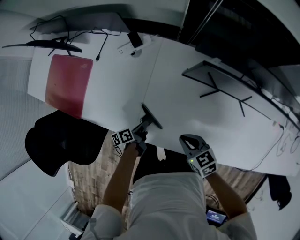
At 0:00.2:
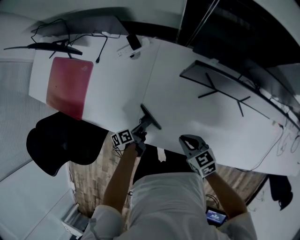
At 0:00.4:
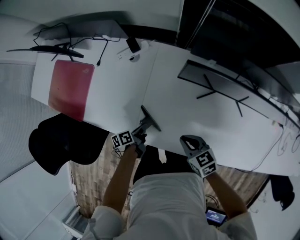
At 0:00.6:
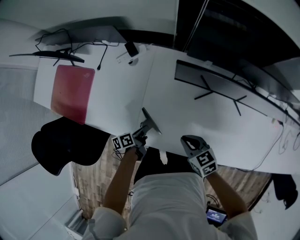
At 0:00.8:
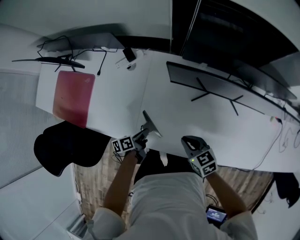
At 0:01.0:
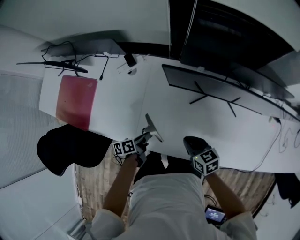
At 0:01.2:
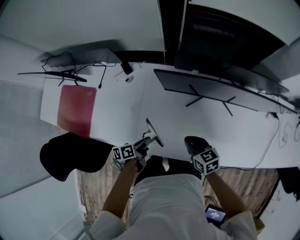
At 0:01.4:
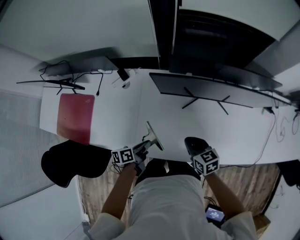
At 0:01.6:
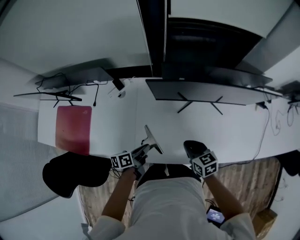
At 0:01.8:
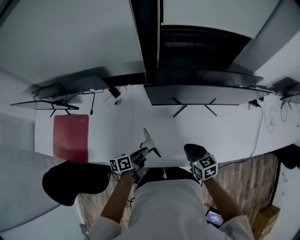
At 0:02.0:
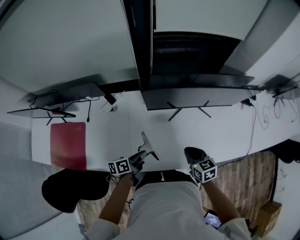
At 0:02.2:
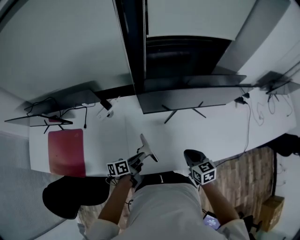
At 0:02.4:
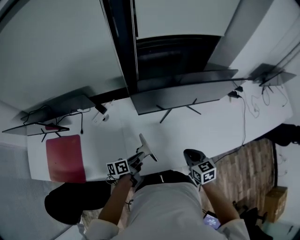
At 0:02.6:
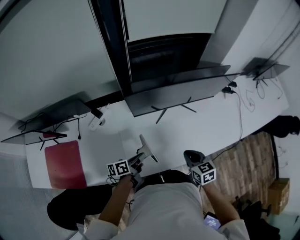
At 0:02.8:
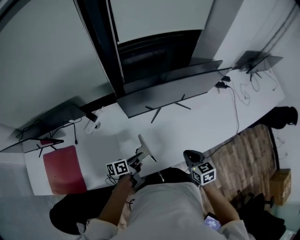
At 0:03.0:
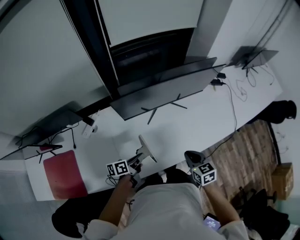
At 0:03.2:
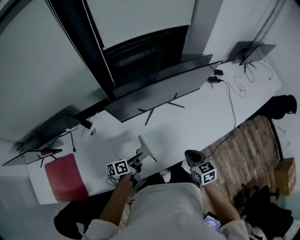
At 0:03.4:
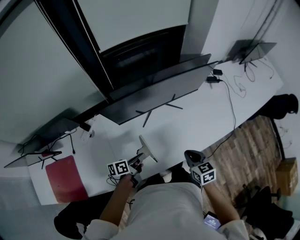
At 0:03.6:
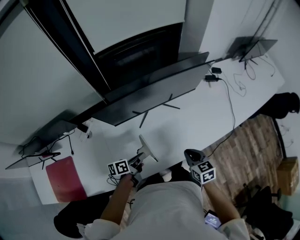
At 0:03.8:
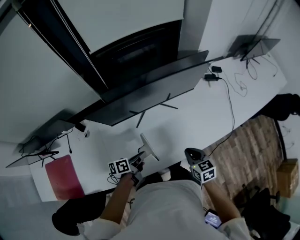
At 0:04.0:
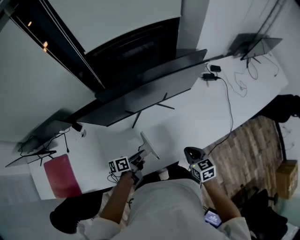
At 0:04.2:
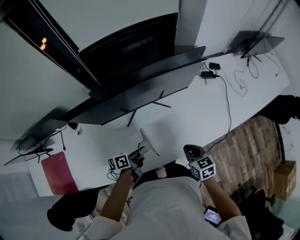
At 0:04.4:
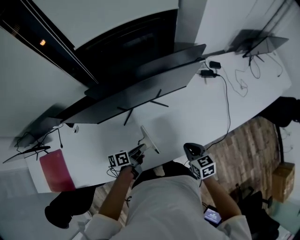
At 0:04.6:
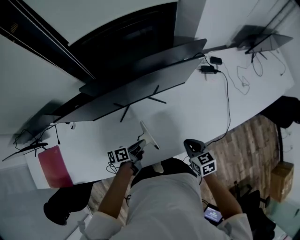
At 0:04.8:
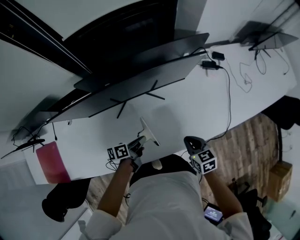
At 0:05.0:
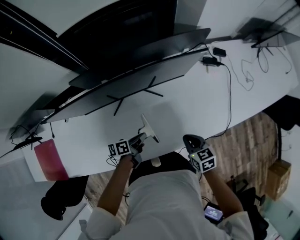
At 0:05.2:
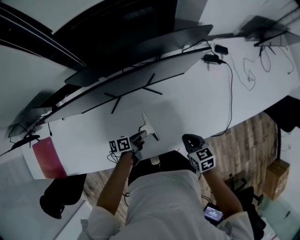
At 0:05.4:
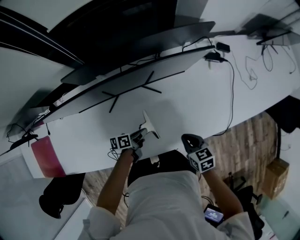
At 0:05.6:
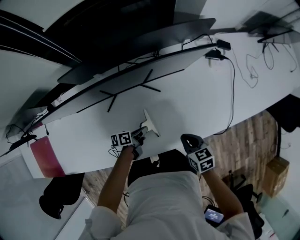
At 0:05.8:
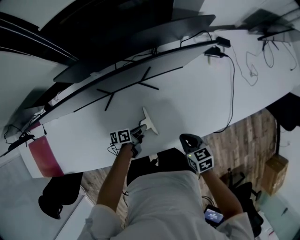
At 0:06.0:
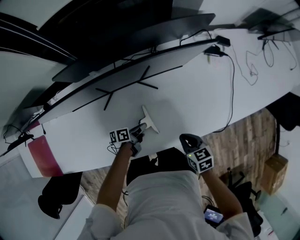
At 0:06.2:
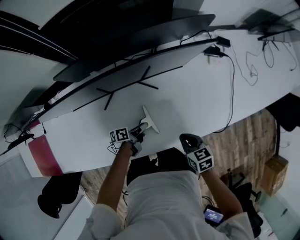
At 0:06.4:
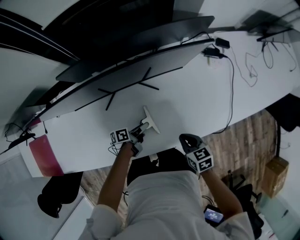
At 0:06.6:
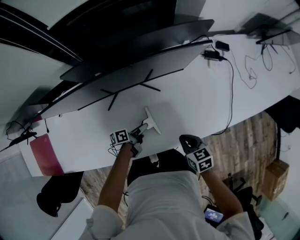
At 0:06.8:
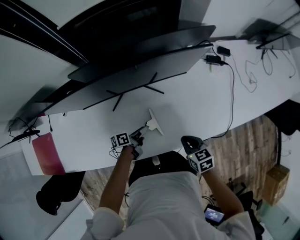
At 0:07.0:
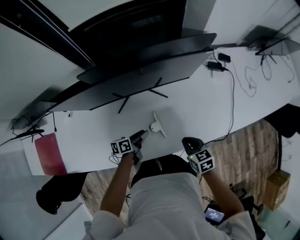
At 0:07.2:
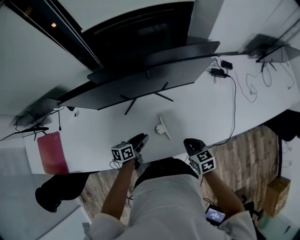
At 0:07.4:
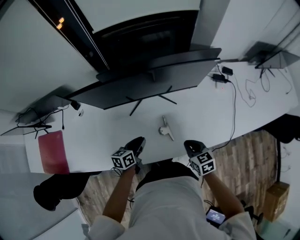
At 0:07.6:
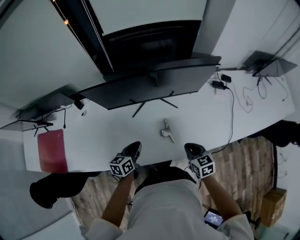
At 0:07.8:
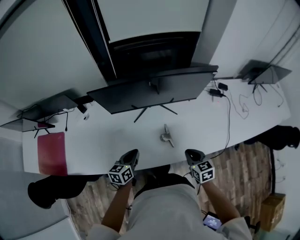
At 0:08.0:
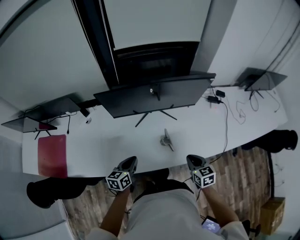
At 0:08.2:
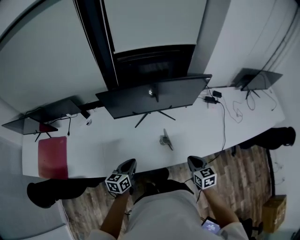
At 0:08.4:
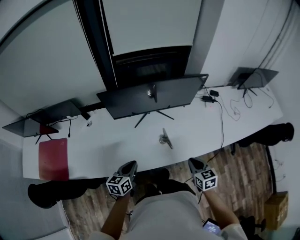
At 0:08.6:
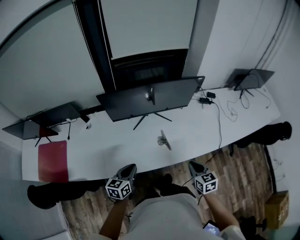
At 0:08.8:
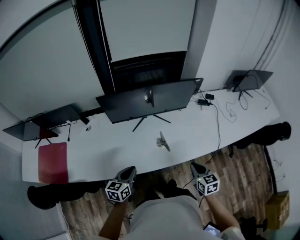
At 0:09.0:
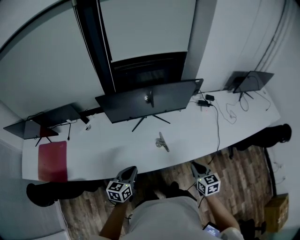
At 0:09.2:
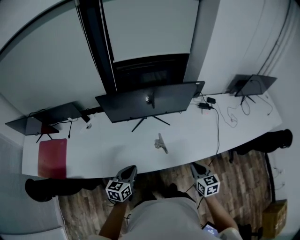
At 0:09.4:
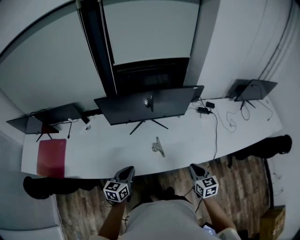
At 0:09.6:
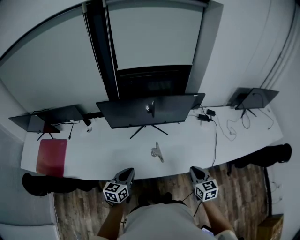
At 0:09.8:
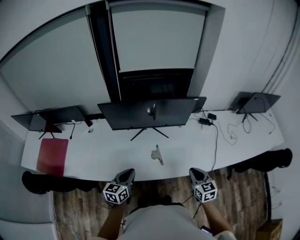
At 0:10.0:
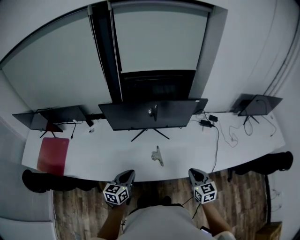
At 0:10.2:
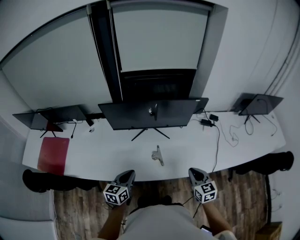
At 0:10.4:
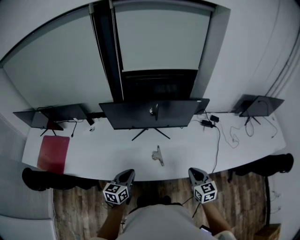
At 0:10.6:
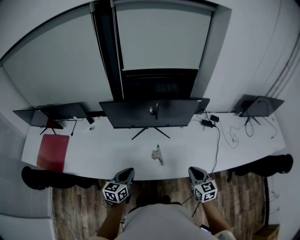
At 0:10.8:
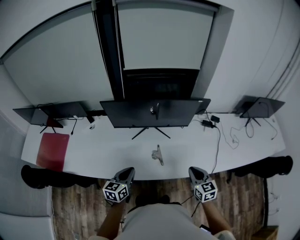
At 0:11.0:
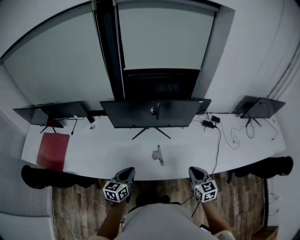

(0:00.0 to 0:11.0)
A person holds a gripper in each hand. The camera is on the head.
0:00.0 - 0:01.6: The left gripper moves upward and to the right, roughly 20 cm, and turns by roughly 30 degrees, while the right gripper travels to the right and upward by about 10 cm, and rotates roughly 30 degrees.
0:01.6 - 0:03.2: The right gripper changes place by approximately 15 cm, and changes its angle by roughly 30 degrees, while the left gripper moves some 10 cm, and turns by some 20 degrees.
0:03.2 - 0:04.8: The right gripper moves to the right, forward and downward, approximately 25 cm. The left gripper moves to the right and forward, roughly 25 cm.
0:04.8 - 0:06.2: The right gripper moves downward, about 5 cm. Meanwhile the left gripper travels downward by approximately 15 cm.
0:06.2 - 0:07.8: The left gripper goes about 30 cm upward, to the left and backward, swivels some 50 degrees, and opens, then closes once more; the right gripper goes approximately 15 cm upward and to the left.
0:07.8 - 0:09.4: The left gripper is displaced backward and upward by roughly 15 cm. The right gripper heads upward, to the right and backward, covering about 15 cm.
0:09.4 - 0:11.0: The right gripper moves some 5 cm.

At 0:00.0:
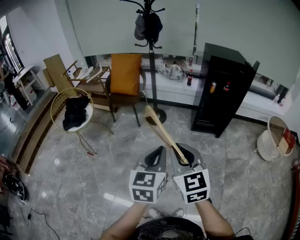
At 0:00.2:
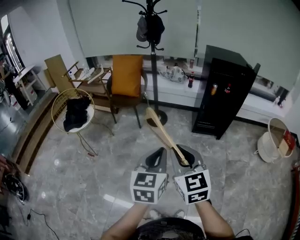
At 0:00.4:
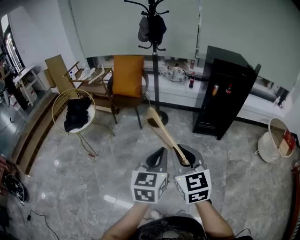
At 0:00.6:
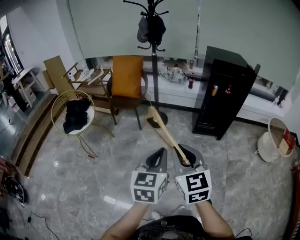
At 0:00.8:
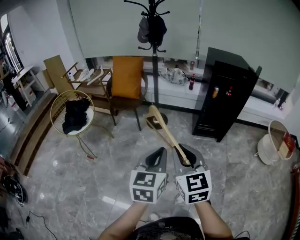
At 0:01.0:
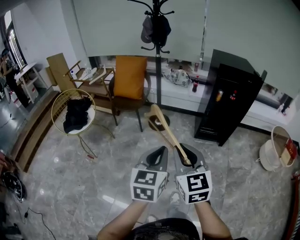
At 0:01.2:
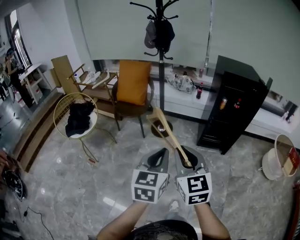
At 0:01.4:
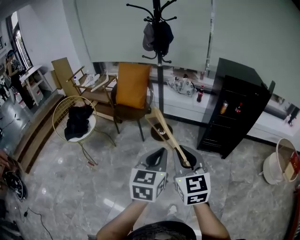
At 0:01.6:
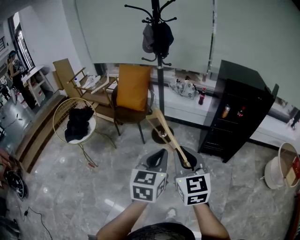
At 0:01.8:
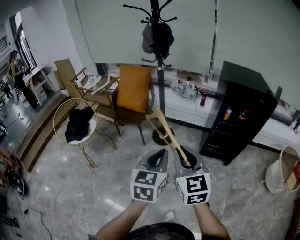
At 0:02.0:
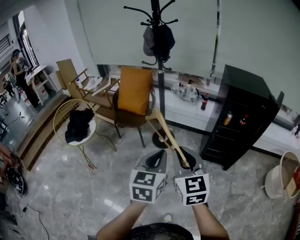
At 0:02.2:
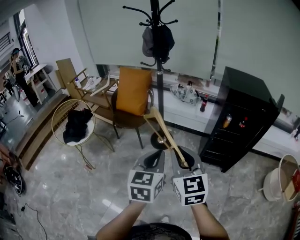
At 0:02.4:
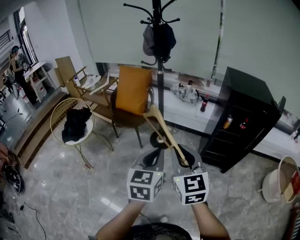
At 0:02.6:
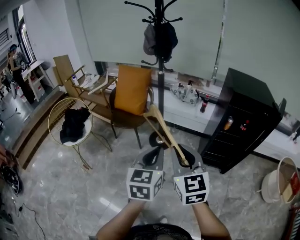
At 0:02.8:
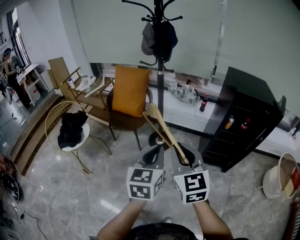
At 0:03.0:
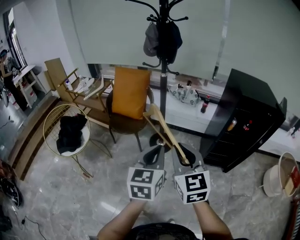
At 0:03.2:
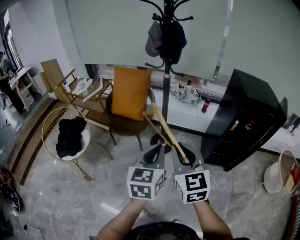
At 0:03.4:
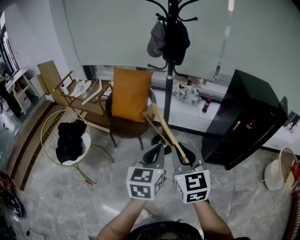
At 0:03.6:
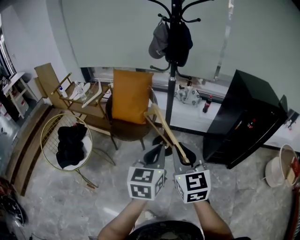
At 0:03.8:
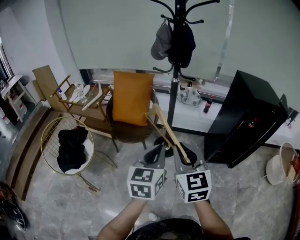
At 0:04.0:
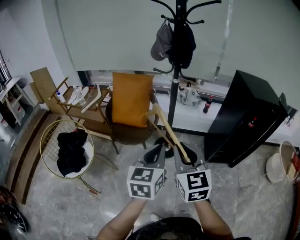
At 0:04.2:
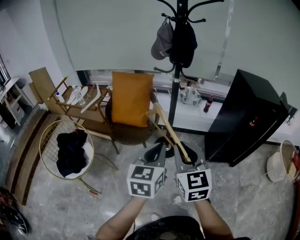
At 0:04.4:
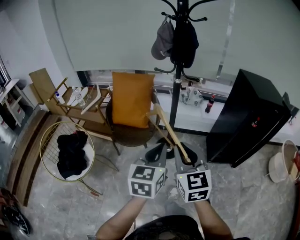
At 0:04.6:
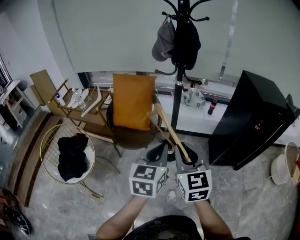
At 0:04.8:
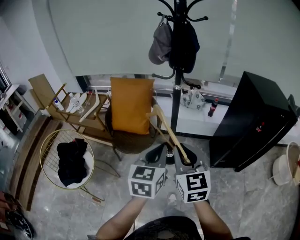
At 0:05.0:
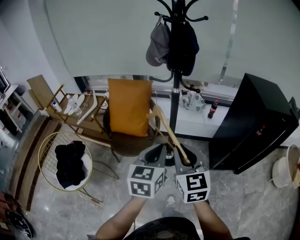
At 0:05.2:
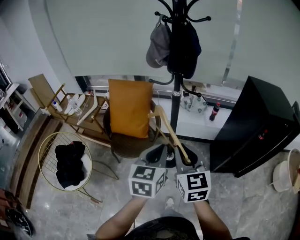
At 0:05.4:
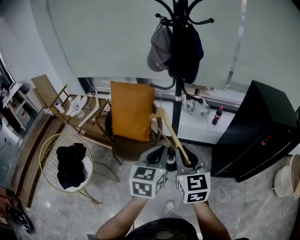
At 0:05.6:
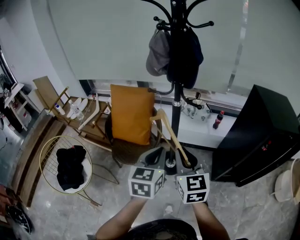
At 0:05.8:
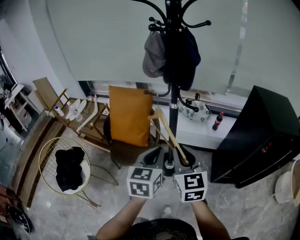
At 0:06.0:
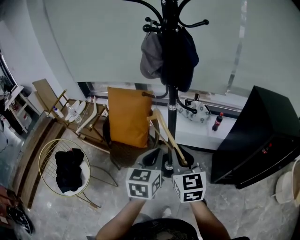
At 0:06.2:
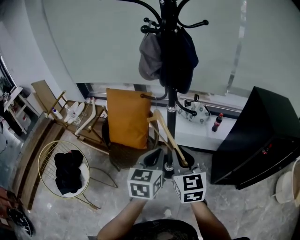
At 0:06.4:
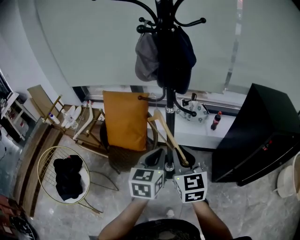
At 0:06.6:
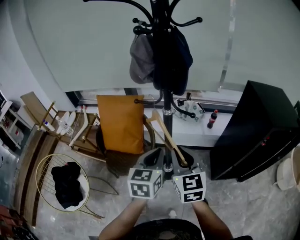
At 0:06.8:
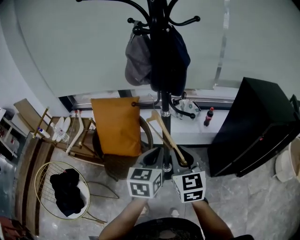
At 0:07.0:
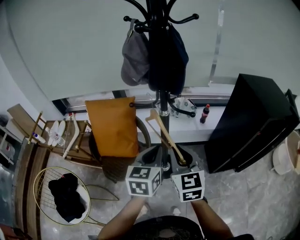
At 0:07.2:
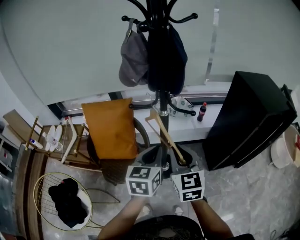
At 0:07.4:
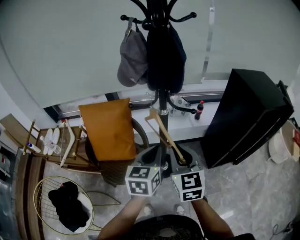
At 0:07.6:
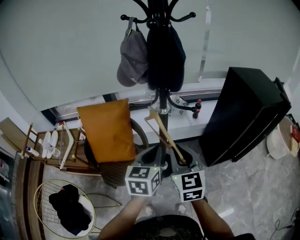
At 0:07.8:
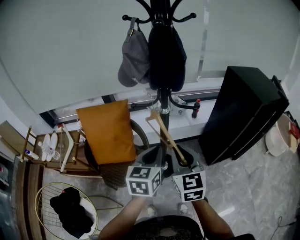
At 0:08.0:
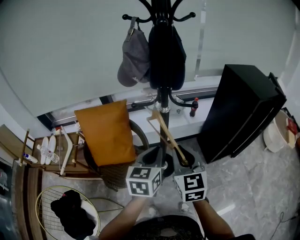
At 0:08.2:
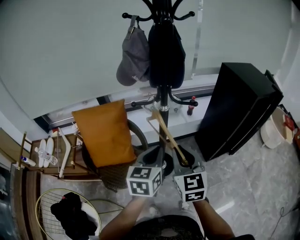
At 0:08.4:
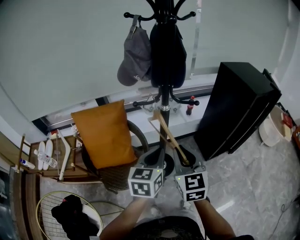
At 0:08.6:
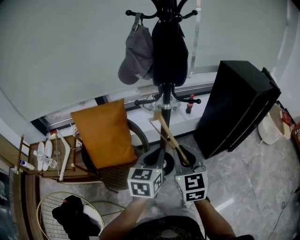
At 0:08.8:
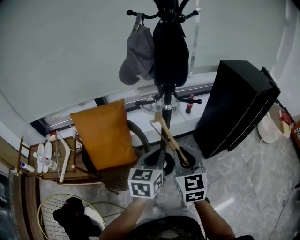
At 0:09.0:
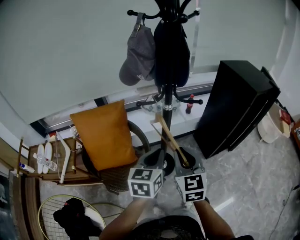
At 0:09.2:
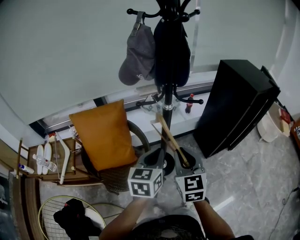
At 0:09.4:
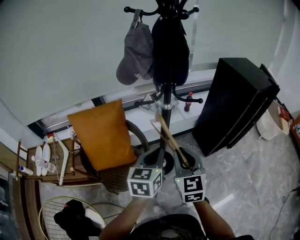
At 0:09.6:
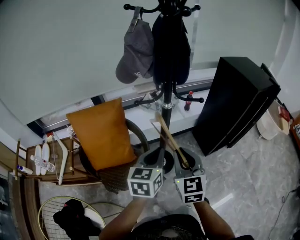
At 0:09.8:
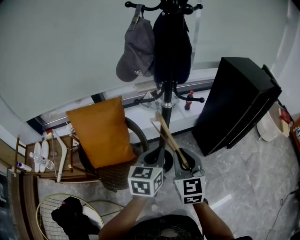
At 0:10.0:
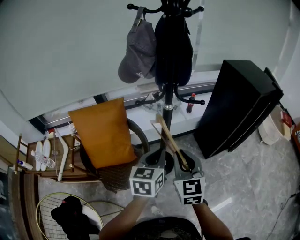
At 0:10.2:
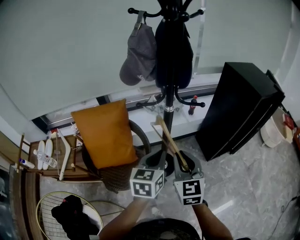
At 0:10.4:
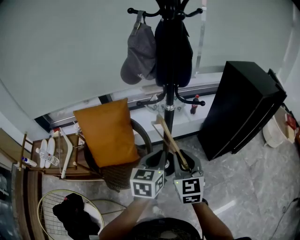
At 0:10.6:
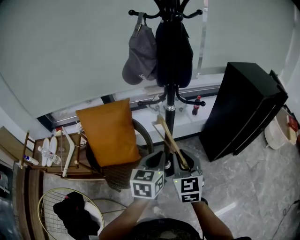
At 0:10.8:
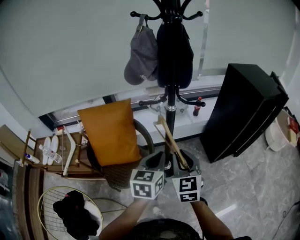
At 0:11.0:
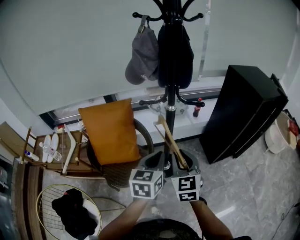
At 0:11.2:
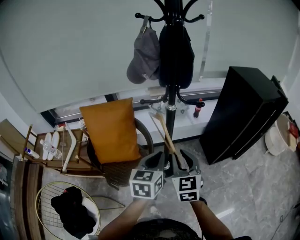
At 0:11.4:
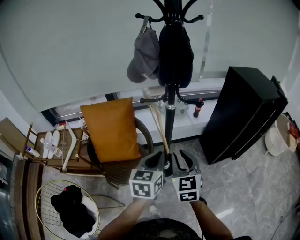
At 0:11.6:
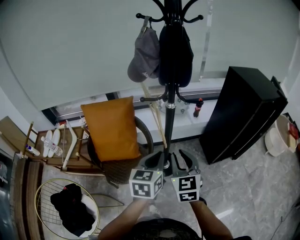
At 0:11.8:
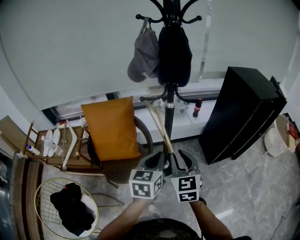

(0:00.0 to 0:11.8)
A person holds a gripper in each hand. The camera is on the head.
0:00.0 - 0:01.4: Both grippers travel together forward, roughly 15 cm.
0:01.4 - 0:03.0: The two grippers go roughly 20 cm forward.
0:03.0 - 0:04.4: The two grippers go roughly 20 cm to the left and forward.
0:04.4 - 0:06.0: Both grippers travel together forward, approximately 20 cm.
0:06.0 - 0:07.4: The left gripper heads forward, covering roughly 10 cm. The right gripper moves some 5 cm.
0:07.4 - 0:08.8: The right gripper changes place by roughly 5 cm. Meanwhile the left gripper shifts by approximately 5 cm.
0:08.8 - 0:10.4: The grippers move only a little.
0:10.4 - 0:11.8: The left gripper goes roughly 5 cm backward.

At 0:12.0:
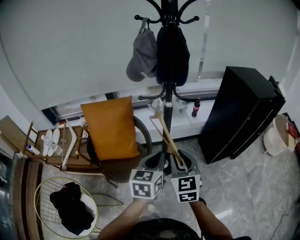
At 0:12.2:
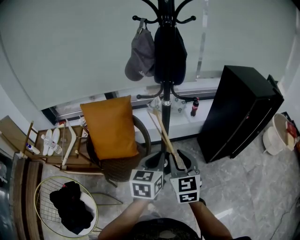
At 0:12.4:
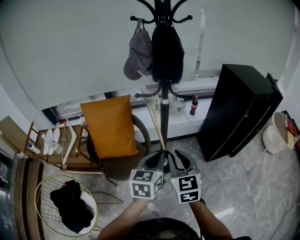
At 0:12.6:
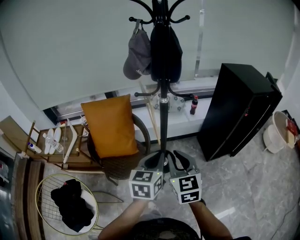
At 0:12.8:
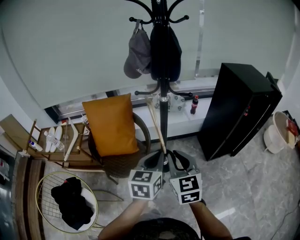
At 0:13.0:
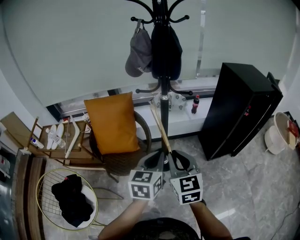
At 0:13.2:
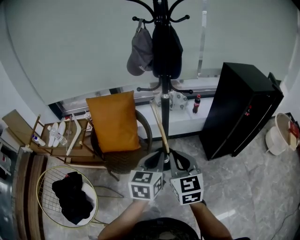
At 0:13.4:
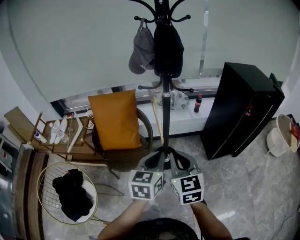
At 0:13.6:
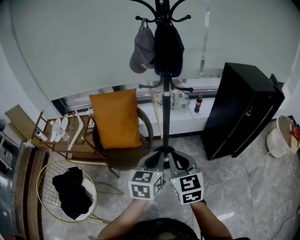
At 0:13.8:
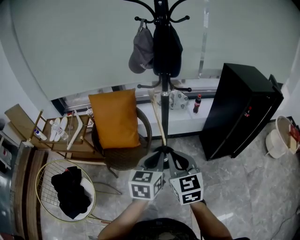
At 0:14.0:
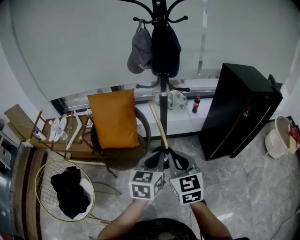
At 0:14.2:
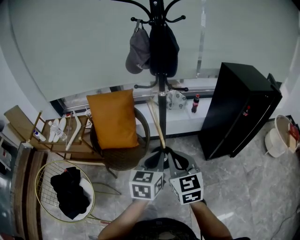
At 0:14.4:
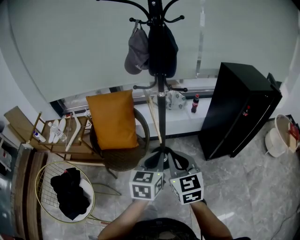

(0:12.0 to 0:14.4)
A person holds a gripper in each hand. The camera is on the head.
0:12.0 - 0:13.2: Both grippers travel together backward, approximately 10 cm.
0:13.2 - 0:14.4: The grippers move only a little.
